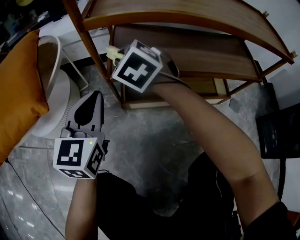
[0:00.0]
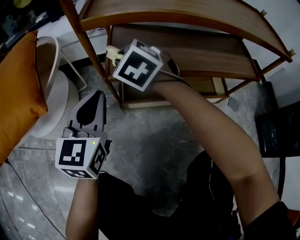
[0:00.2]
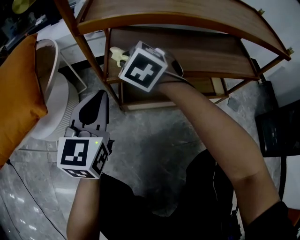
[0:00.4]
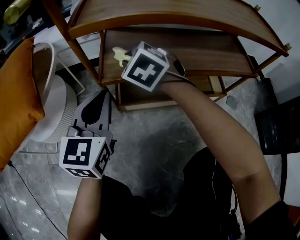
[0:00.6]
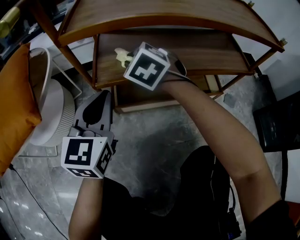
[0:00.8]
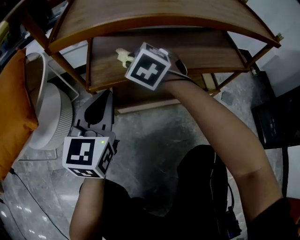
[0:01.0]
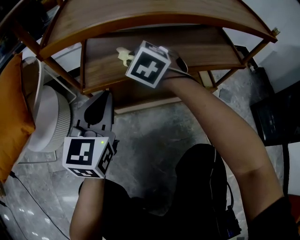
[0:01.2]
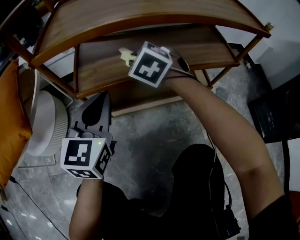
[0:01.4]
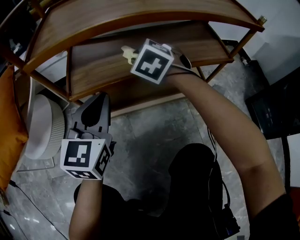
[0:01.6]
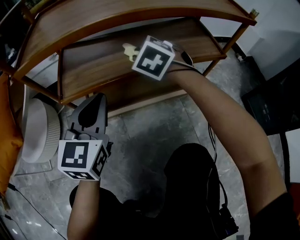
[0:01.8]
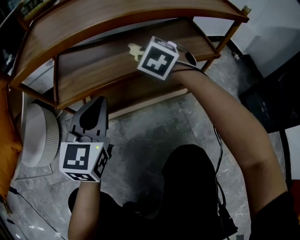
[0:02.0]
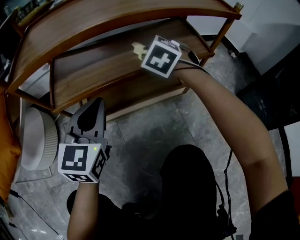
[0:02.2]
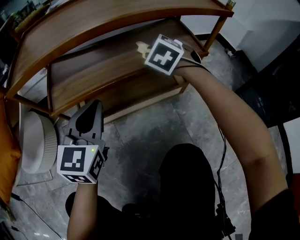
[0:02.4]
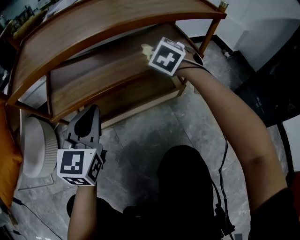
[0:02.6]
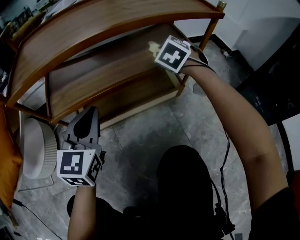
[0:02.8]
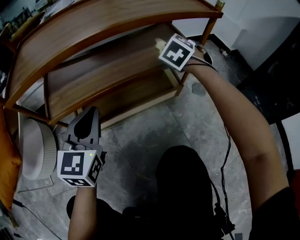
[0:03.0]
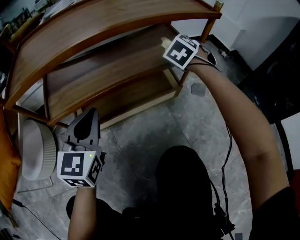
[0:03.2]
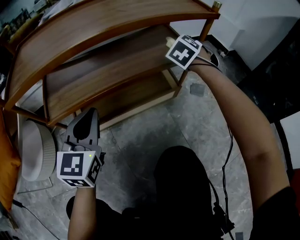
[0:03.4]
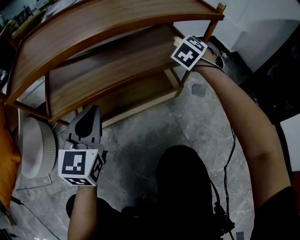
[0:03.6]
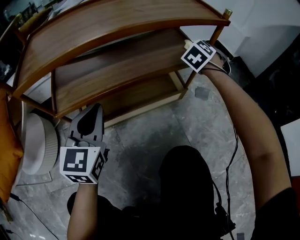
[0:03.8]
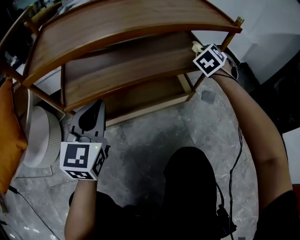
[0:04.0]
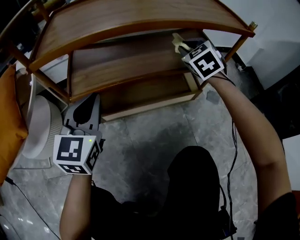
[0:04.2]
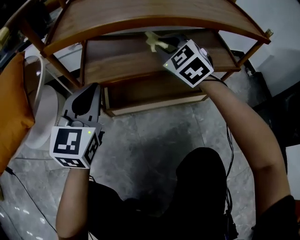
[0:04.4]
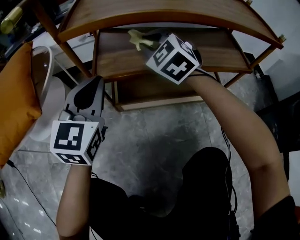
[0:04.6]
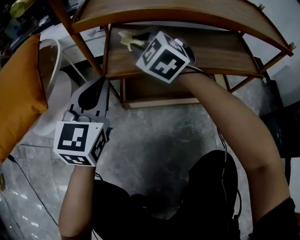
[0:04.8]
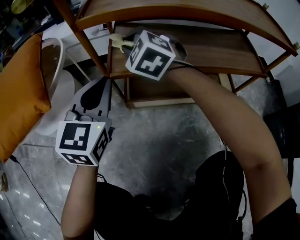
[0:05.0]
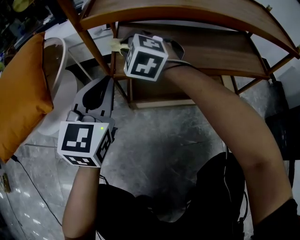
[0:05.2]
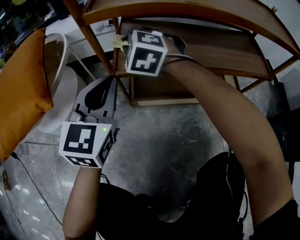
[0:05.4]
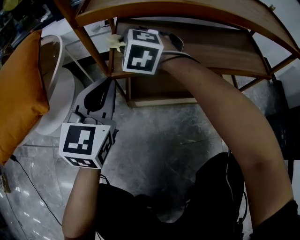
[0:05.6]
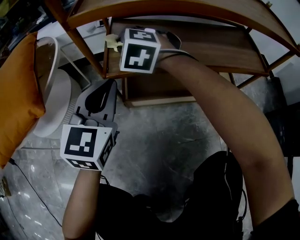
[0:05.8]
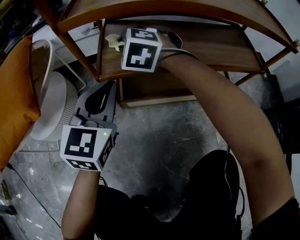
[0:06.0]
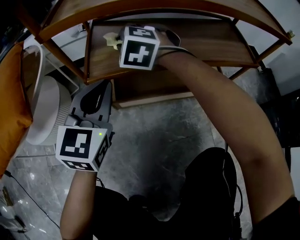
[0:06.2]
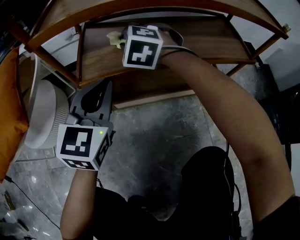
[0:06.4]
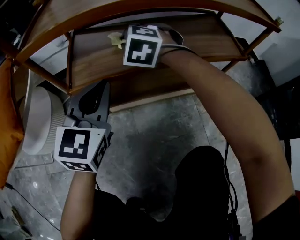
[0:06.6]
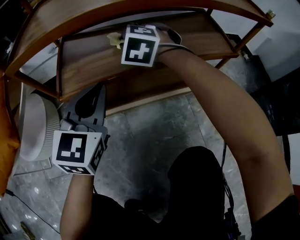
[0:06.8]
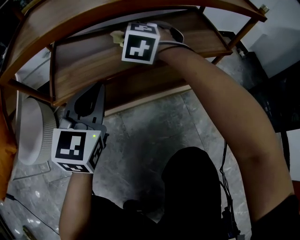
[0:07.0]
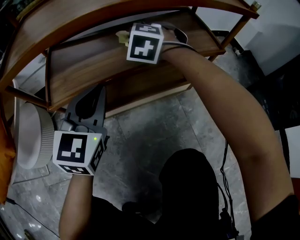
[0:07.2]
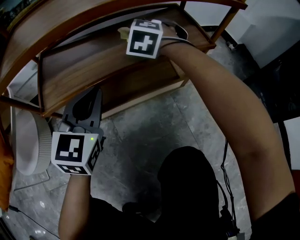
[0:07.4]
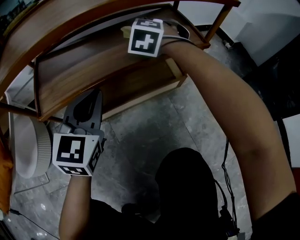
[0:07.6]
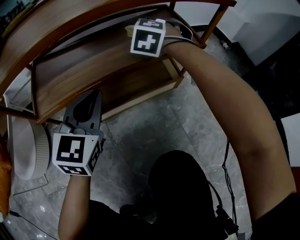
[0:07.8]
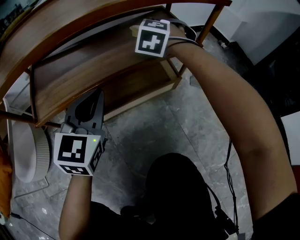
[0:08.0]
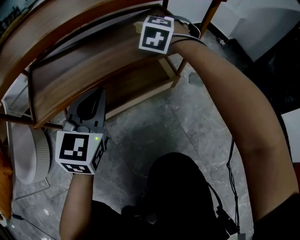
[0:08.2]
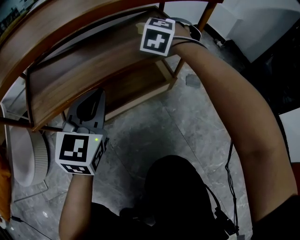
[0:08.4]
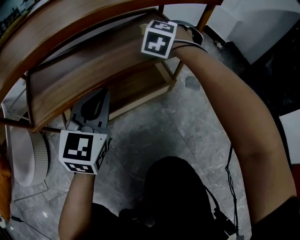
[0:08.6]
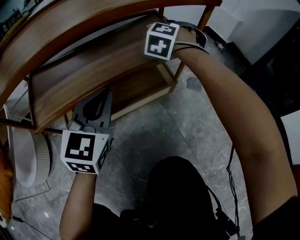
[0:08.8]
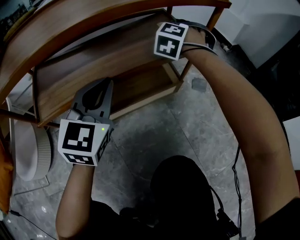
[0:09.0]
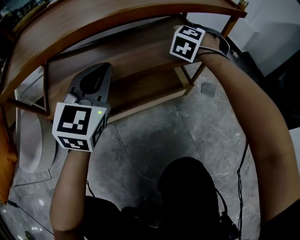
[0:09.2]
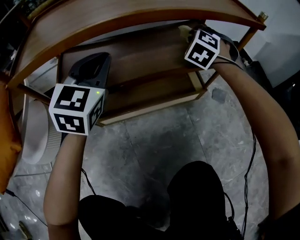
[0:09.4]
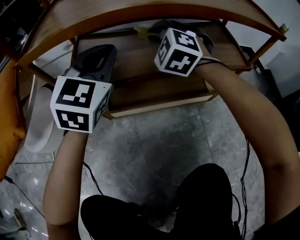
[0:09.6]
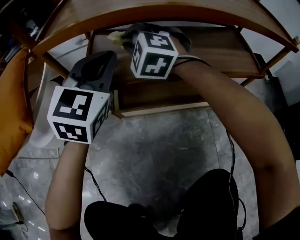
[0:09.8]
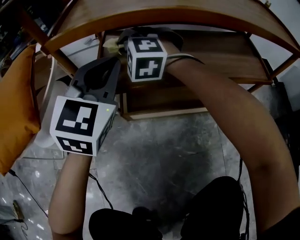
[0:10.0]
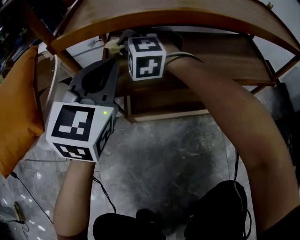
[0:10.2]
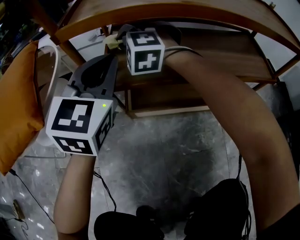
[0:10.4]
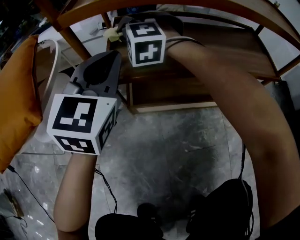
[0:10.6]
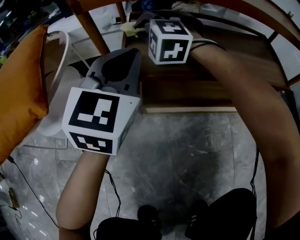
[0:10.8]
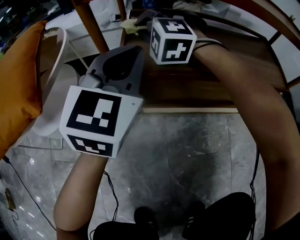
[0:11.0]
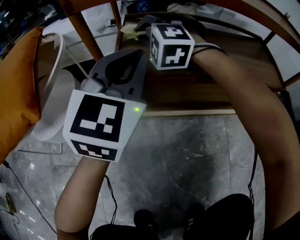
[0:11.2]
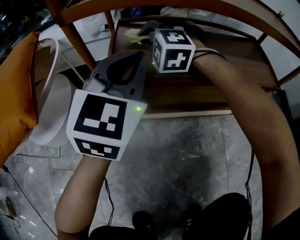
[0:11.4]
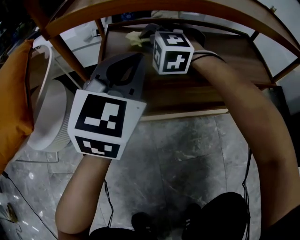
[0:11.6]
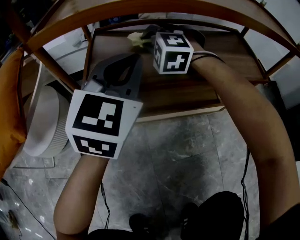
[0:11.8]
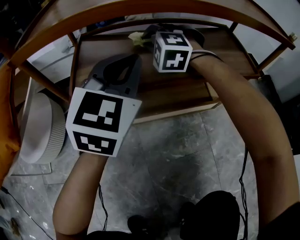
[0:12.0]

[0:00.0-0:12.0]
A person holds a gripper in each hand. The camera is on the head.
0:00.0 to 0:01.6: The two grippers go about 20 cm to the right.
0:01.6 to 0:03.0: The right gripper is displaced to the right by about 25 cm, and swivels some 20 degrees, while the left gripper travels to the right by some 5 cm.
0:03.0 to 0:04.4: The right gripper changes place by some 25 cm, and swivels some 30 degrees; the left gripper ends up about 15 cm from where it was.
0:04.4 to 0:06.0: The right gripper heads to the left, covering approximately 20 cm, and changes its angle by about 30 degrees. The left gripper ends up some 5 cm from where it was.
0:06.0 to 0:07.6: The left gripper heads to the right, covering about 20 cm; the right gripper is displaced to the right by approximately 35 cm, and swivels roughly 30 degrees.
0:07.6 to 0:09.0: The left gripper shifts roughly 5 cm to the right, while the right gripper moves to the right and forward, some 15 cm, and swivels some 20 degrees.
0:09.0 to 0:10.4: The right gripper ends up some 50 cm from where it was, and changes its angle by roughly 60 degrees. The left gripper moves some 25 cm, and swivels about 20 degrees.
0:10.4 to 0:12.0: Both grippers travel together to the right, about 15 cm.

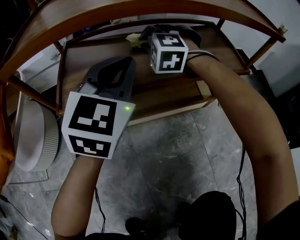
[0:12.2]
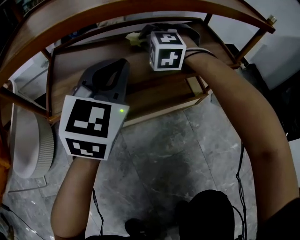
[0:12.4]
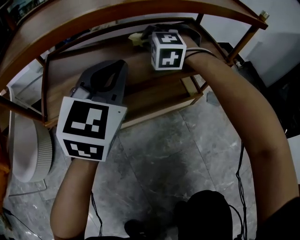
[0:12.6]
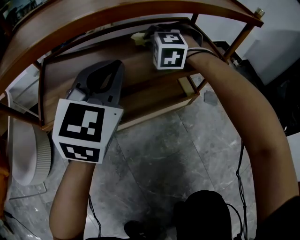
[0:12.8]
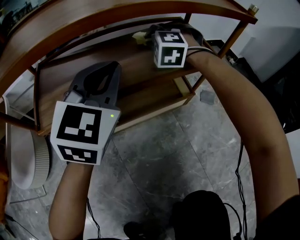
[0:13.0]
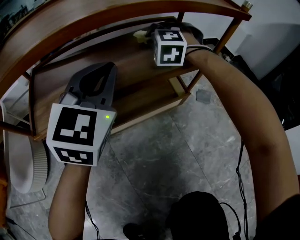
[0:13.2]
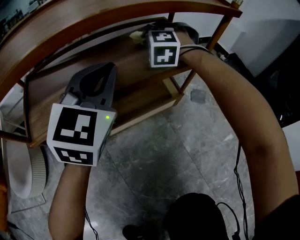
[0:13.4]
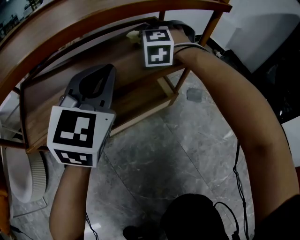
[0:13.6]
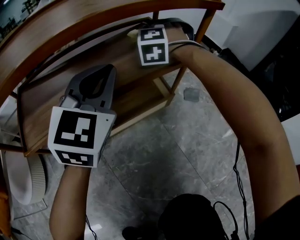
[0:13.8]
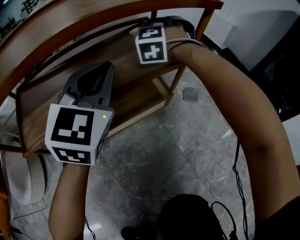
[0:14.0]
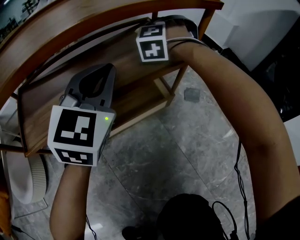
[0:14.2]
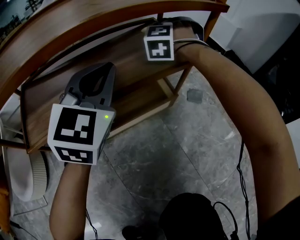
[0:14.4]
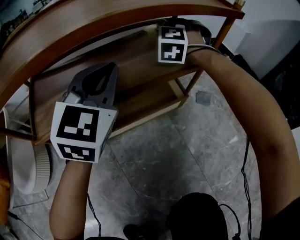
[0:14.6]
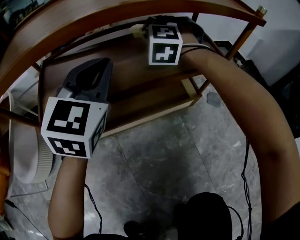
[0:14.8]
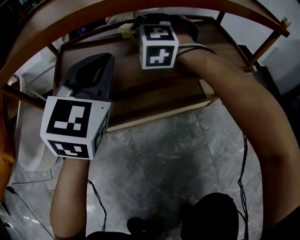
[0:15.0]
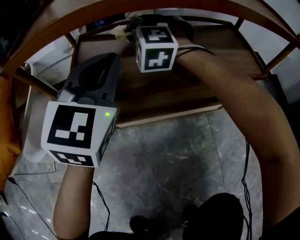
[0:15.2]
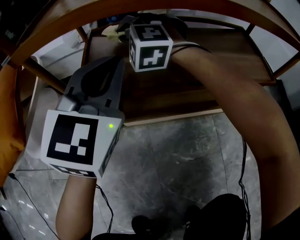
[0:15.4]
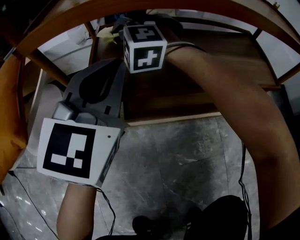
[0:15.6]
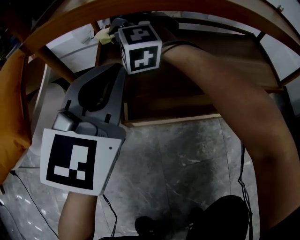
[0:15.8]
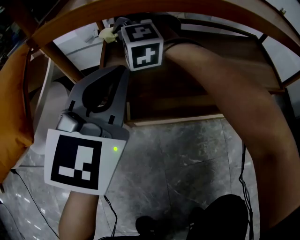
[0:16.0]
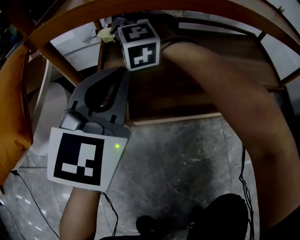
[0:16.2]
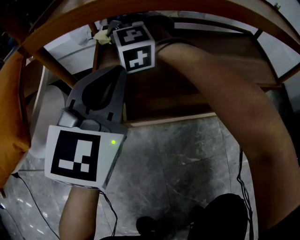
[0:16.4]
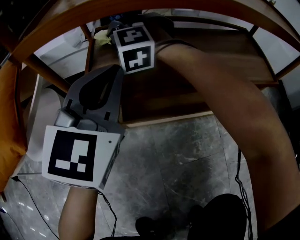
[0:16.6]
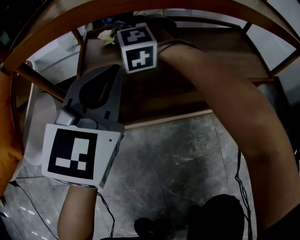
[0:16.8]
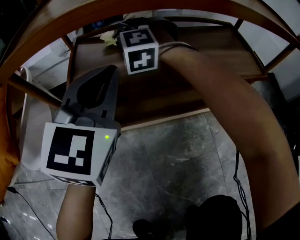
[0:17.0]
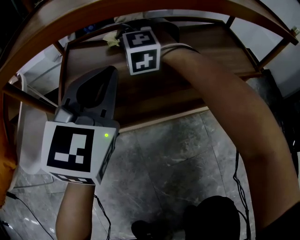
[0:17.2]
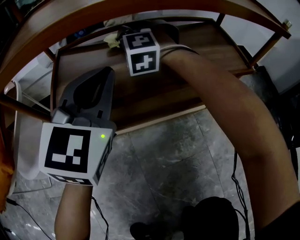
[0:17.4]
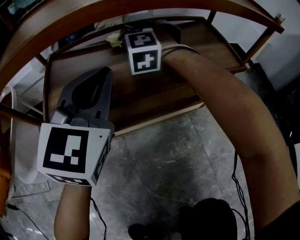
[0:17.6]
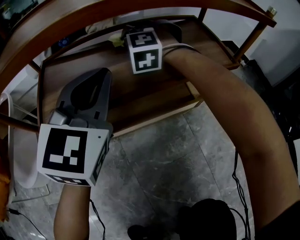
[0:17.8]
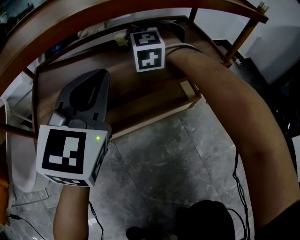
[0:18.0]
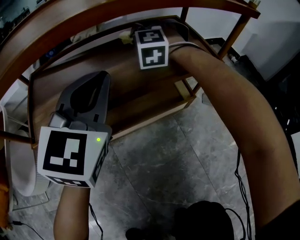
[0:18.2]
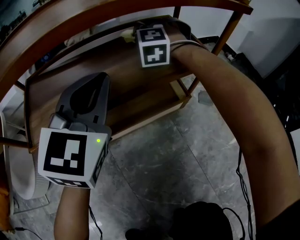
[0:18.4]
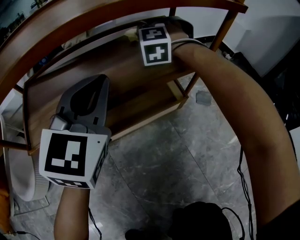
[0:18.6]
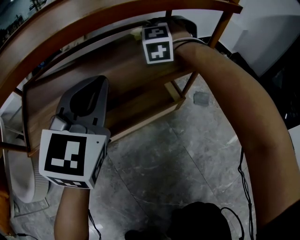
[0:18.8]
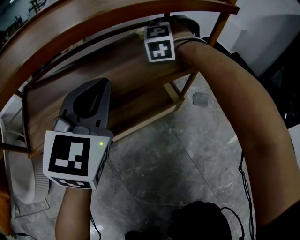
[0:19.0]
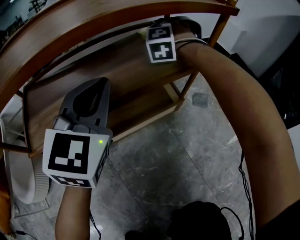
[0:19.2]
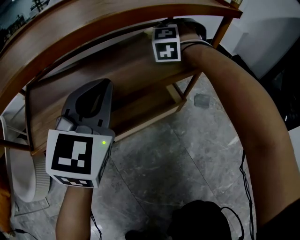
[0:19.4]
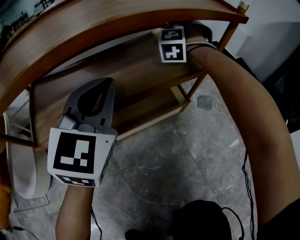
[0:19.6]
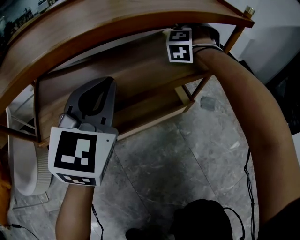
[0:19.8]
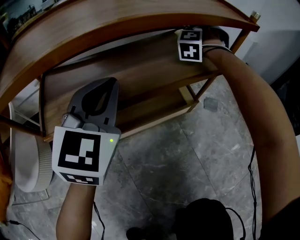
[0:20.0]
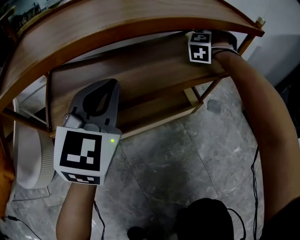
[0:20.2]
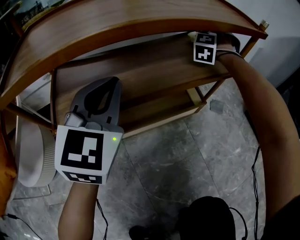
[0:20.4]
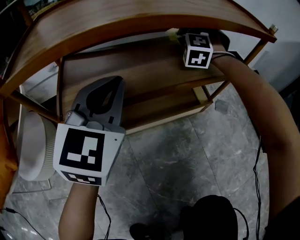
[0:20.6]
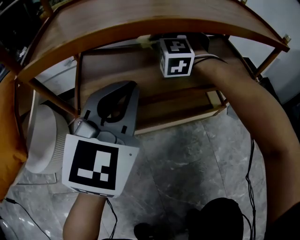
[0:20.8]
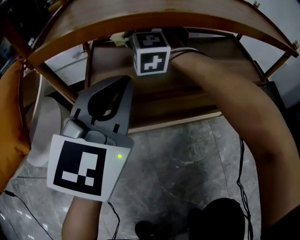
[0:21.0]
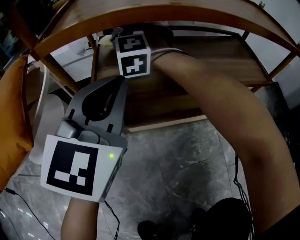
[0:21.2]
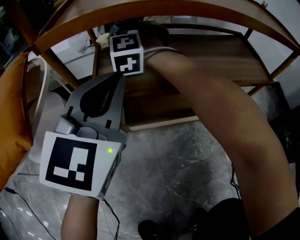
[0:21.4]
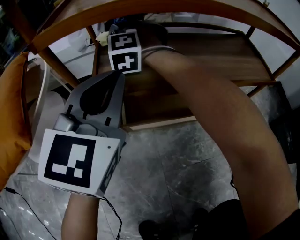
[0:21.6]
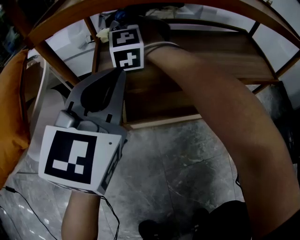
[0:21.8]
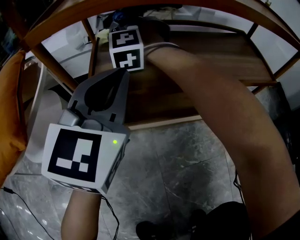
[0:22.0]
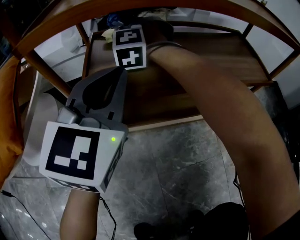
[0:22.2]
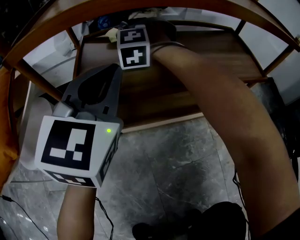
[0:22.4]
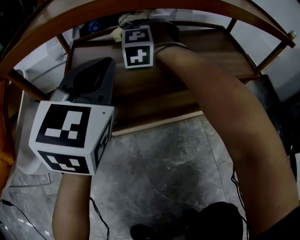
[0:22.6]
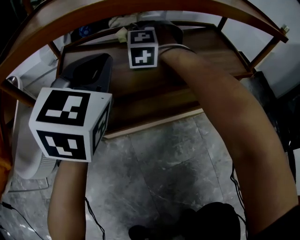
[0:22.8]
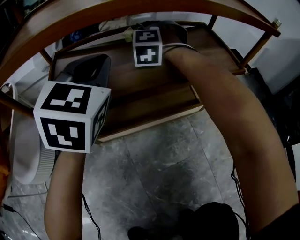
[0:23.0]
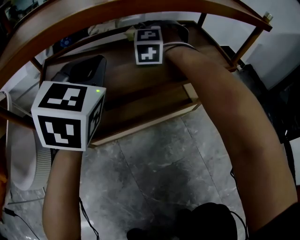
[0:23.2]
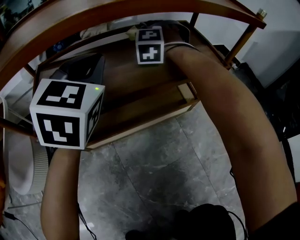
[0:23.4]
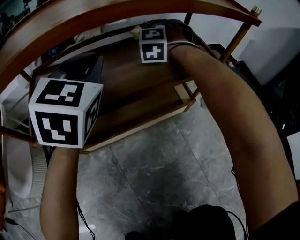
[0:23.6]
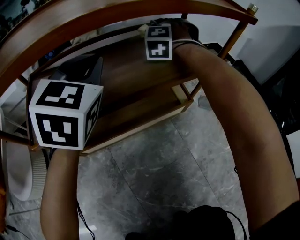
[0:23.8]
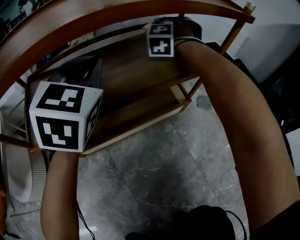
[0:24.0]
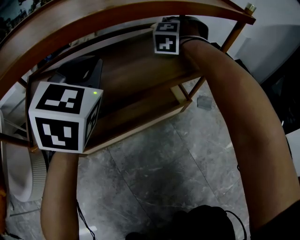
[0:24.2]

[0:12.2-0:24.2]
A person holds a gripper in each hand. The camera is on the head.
0:12.2 to 0:13.8: The left gripper travels to the right by some 15 cm; the right gripper travels to the right by roughly 25 cm, and changes its angle by about 30 degrees.
0:13.8 to 0:15.2: The right gripper changes place by some 35 cm, and swivels approximately 30 degrees. The left gripper shifts by approximately 25 cm.
0:15.2 to 0:16.6: The right gripper heads to the left, covering approximately 10 cm. Meanwhile the left gripper travels to the left by roughly 5 cm.
0:16.6 to 0:18.2: The left gripper shifts some 20 cm to the right; the right gripper heads to the right, covering about 35 cm, and swivels approximately 30 degrees.
0:18.2 to 0:19.8: The right gripper heads to the right and forward, covering some 15 cm, and changes its angle by approximately 30 degrees.
0:19.8 to 0:21.2: The left gripper ends up approximately 20 cm from where it was; the right gripper ends up some 50 cm from where it was, and rotates roughly 50 degrees.
0:21.2 to 0:22.6: The left gripper travels forward by approximately 5 cm, while the right gripper goes about 10 cm to the right.
0:22.6 to 0:24.2: The left gripper shifts approximately 15 cm to the right and forward, while the right gripper is displaced to the right by some 35 cm, and changes its angle by some 30 degrees.
